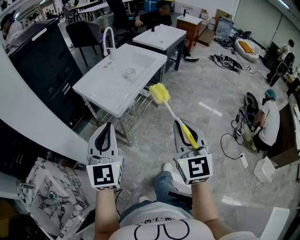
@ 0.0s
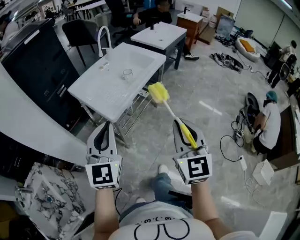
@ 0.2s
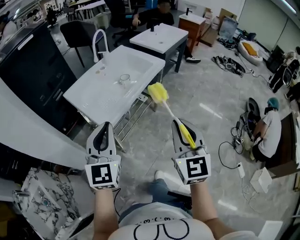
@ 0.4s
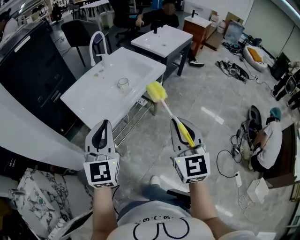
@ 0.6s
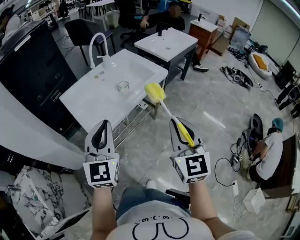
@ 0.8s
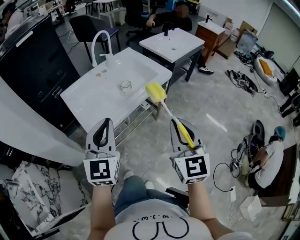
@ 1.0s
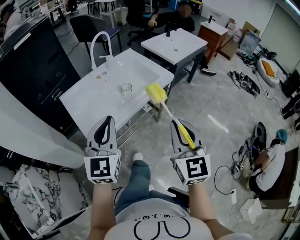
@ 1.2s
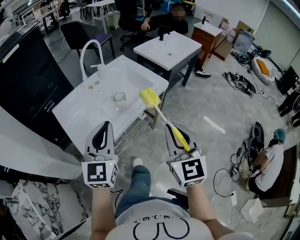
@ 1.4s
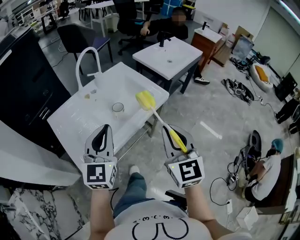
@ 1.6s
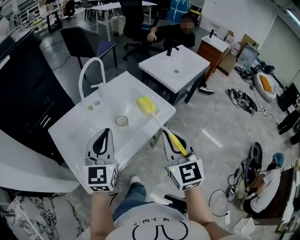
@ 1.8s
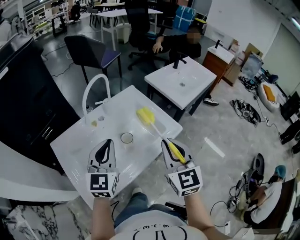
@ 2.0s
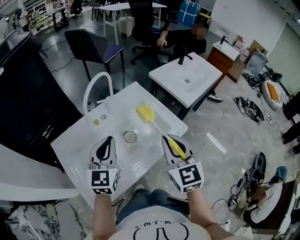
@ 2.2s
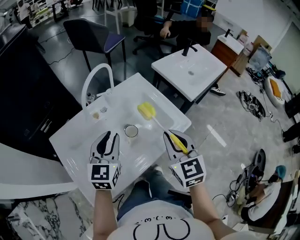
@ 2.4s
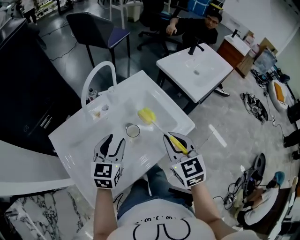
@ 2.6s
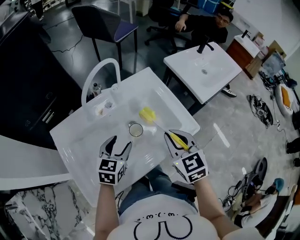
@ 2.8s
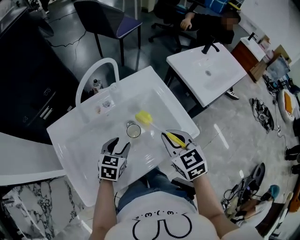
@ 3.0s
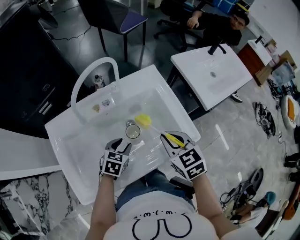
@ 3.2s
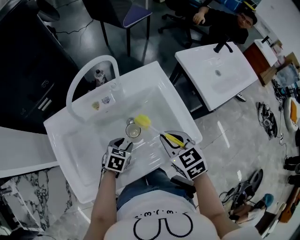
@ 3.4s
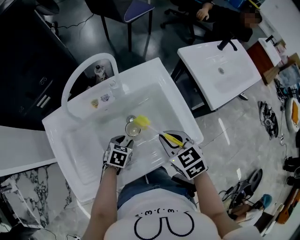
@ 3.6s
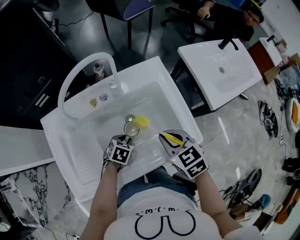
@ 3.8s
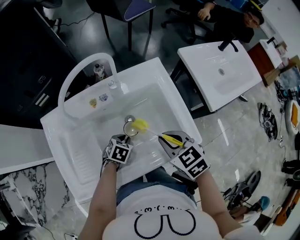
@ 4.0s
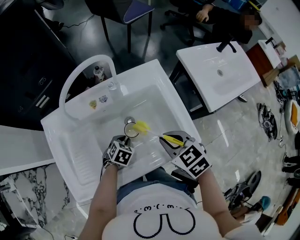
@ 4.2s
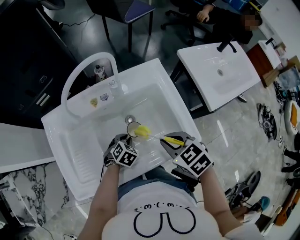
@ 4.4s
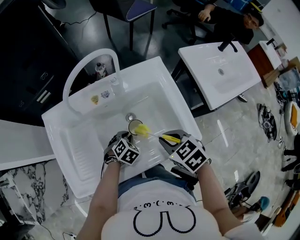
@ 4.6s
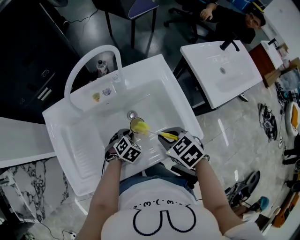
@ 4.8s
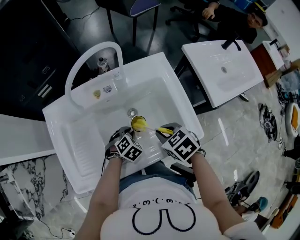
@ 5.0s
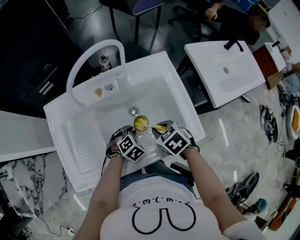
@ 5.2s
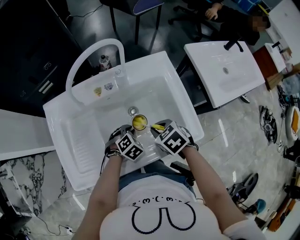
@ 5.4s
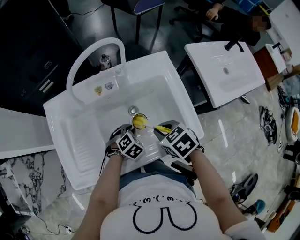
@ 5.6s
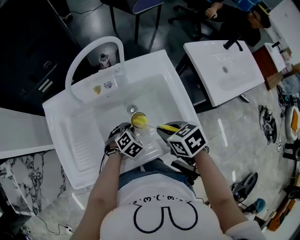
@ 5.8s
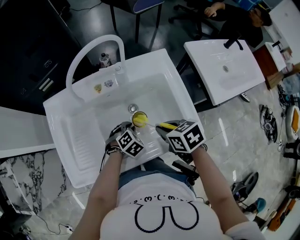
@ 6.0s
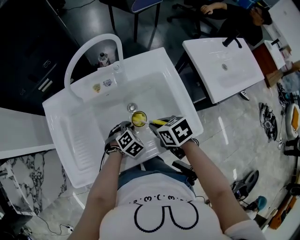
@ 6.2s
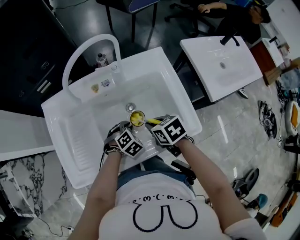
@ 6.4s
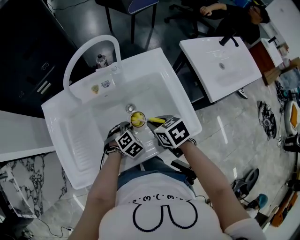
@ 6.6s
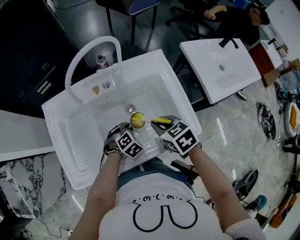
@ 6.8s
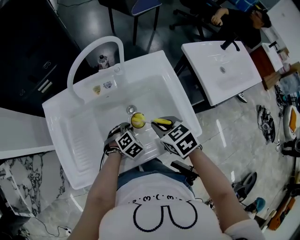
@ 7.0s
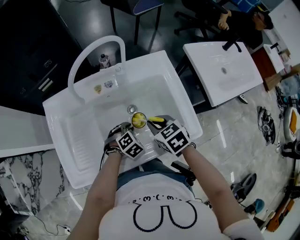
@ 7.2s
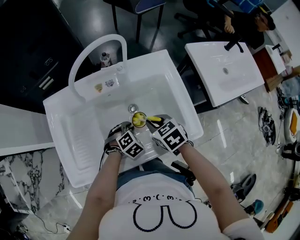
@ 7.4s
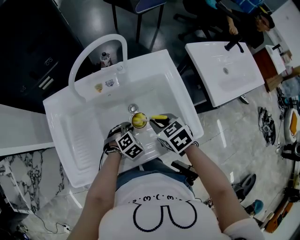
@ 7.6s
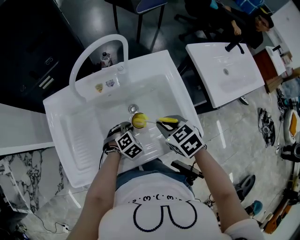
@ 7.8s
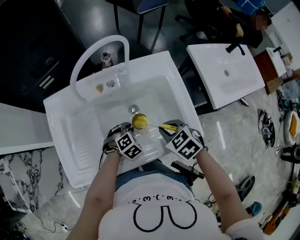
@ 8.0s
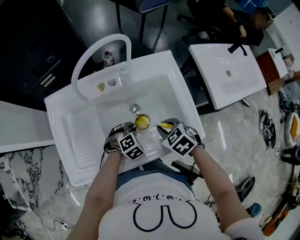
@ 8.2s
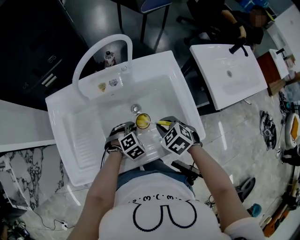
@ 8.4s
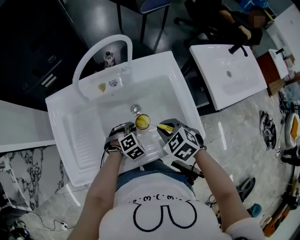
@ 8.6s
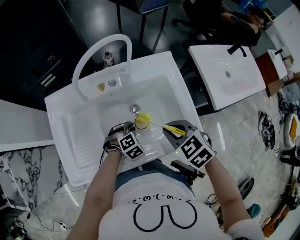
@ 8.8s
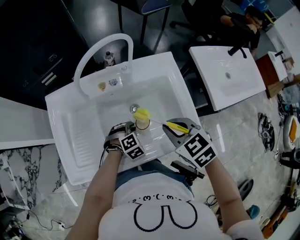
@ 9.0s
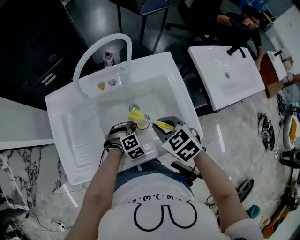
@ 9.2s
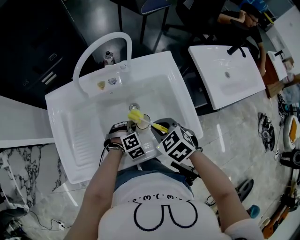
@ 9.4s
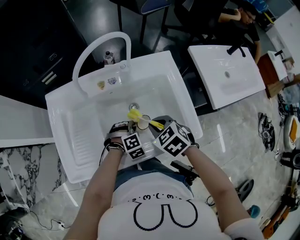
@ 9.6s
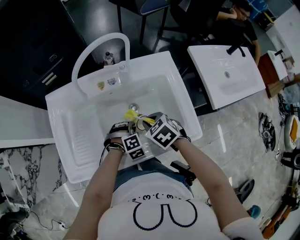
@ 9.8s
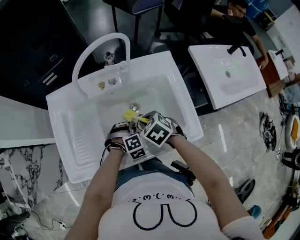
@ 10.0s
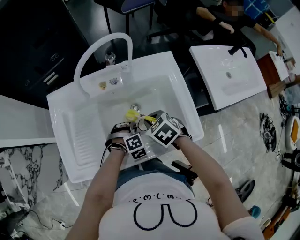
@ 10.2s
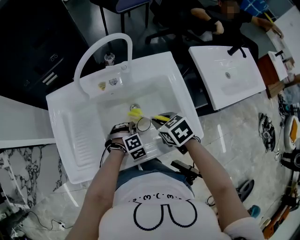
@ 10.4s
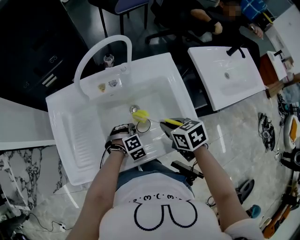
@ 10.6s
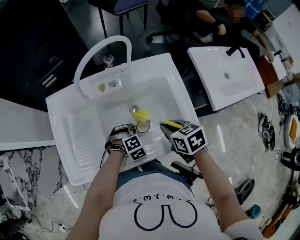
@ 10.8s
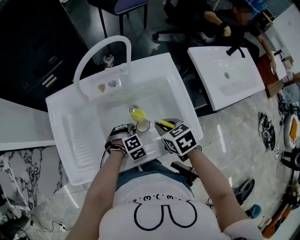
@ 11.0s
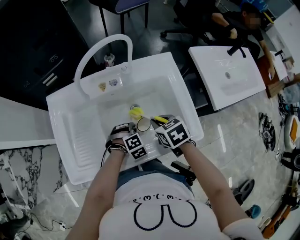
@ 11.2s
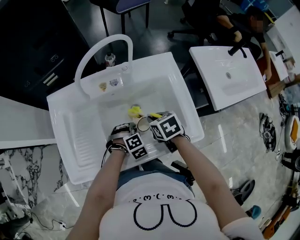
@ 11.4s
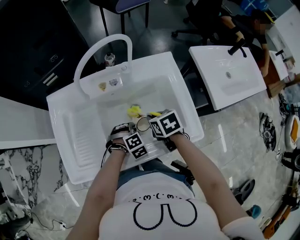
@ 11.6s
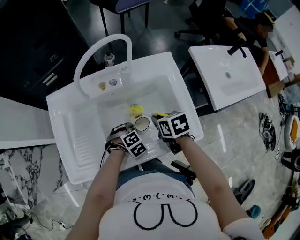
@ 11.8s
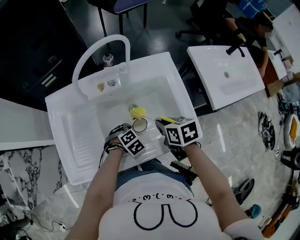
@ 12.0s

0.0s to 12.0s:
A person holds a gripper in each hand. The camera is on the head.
0.0s to 1.6s: The two grippers travel together, forward, some 40 cm.
1.6s to 3.0s: The right gripper goes about 30 cm forward and downward, and turns by some 40 degrees; the left gripper is displaced downward and forward by some 30 cm, points its fingers some 40 degrees further downward, and opens its fingers.
3.0s to 4.4s: The left gripper heads downward, covering approximately 10 cm, turns by some 30 degrees, and closes up. The right gripper is displaced downward by roughly 5 cm, and rotates approximately 30 degrees.
6.0s to 7.6s: The right gripper swings up and down, approximately 5 cm each way, with 2 reversals.
7.6s to 9.0s: The right gripper is displaced upward by some 10 cm.
9.0s to 10.4s: The right gripper goes approximately 10 cm downward.
10.4s to 12.0s: The right gripper rotates about 20 degrees.

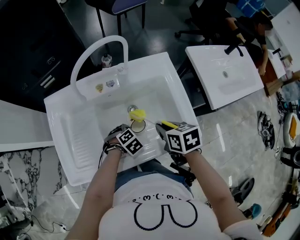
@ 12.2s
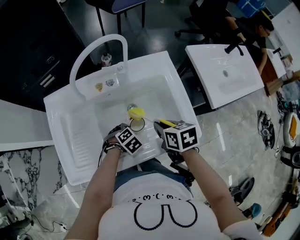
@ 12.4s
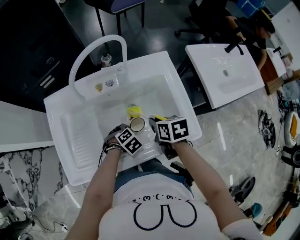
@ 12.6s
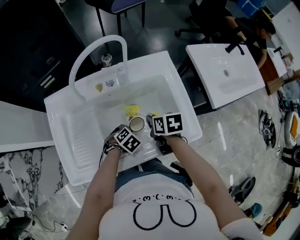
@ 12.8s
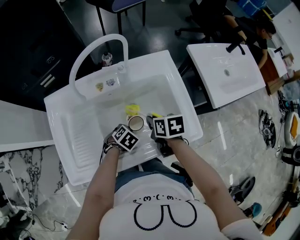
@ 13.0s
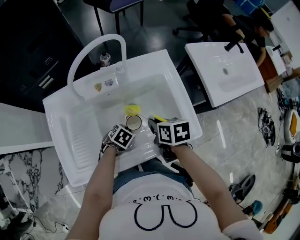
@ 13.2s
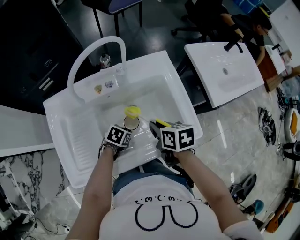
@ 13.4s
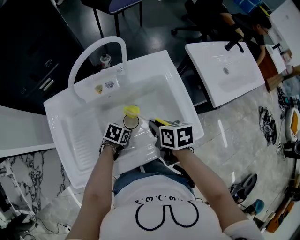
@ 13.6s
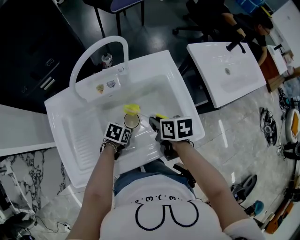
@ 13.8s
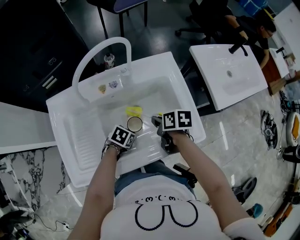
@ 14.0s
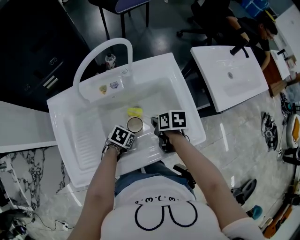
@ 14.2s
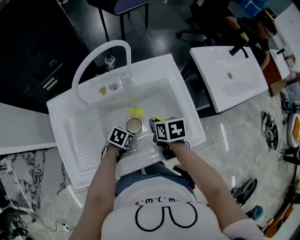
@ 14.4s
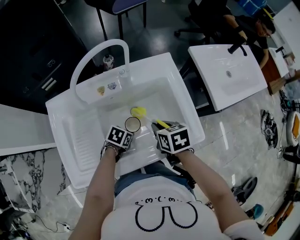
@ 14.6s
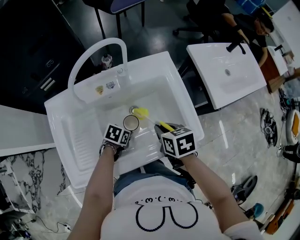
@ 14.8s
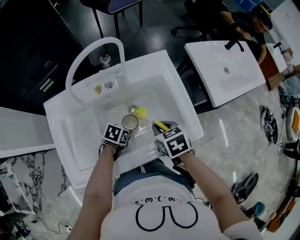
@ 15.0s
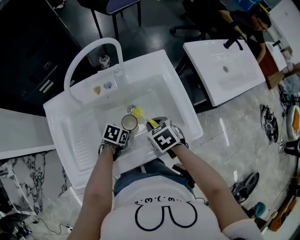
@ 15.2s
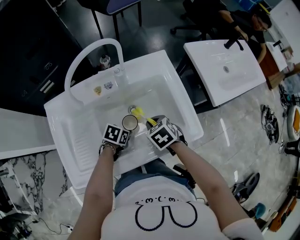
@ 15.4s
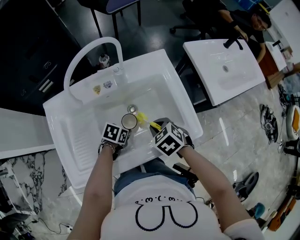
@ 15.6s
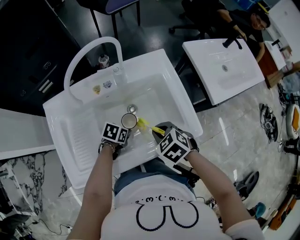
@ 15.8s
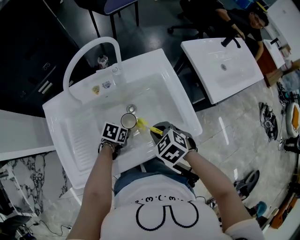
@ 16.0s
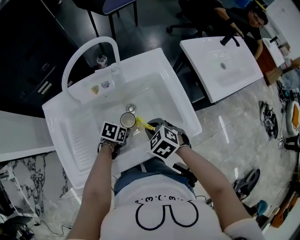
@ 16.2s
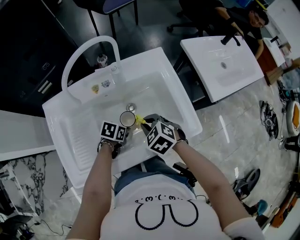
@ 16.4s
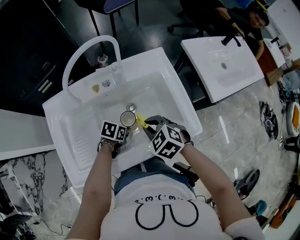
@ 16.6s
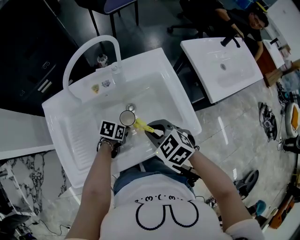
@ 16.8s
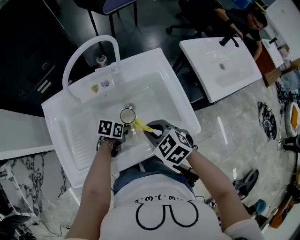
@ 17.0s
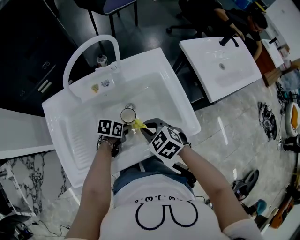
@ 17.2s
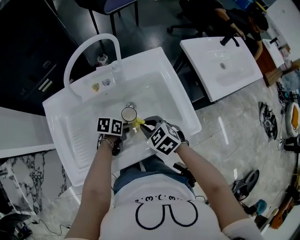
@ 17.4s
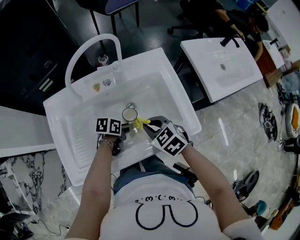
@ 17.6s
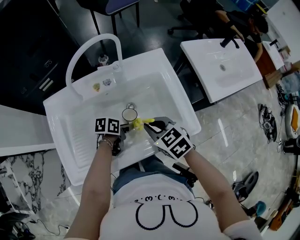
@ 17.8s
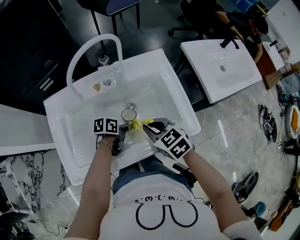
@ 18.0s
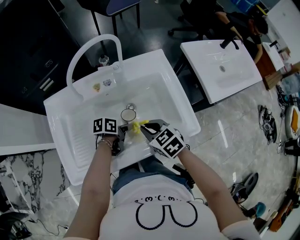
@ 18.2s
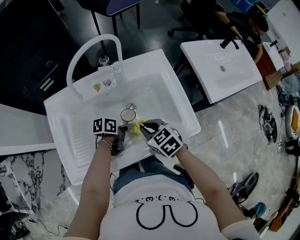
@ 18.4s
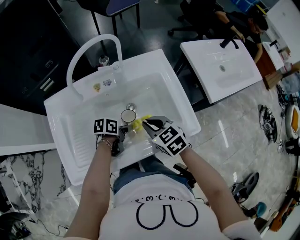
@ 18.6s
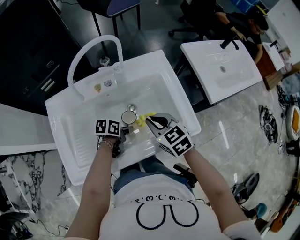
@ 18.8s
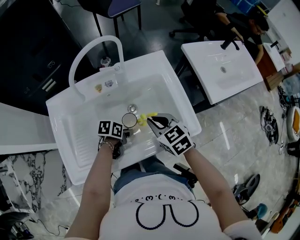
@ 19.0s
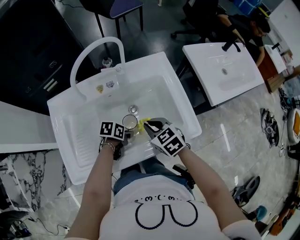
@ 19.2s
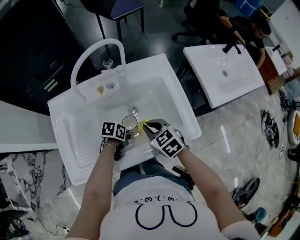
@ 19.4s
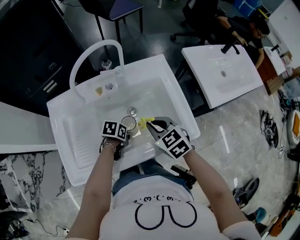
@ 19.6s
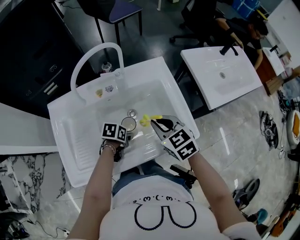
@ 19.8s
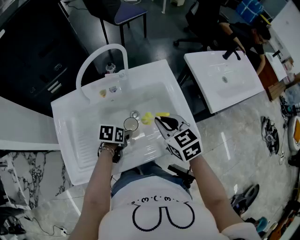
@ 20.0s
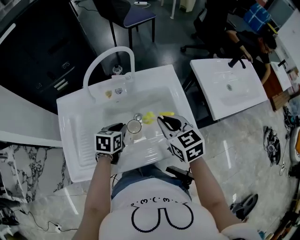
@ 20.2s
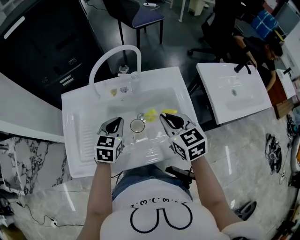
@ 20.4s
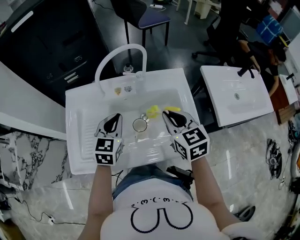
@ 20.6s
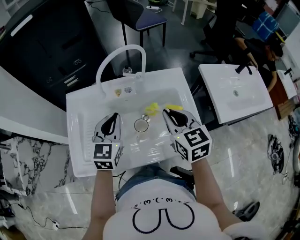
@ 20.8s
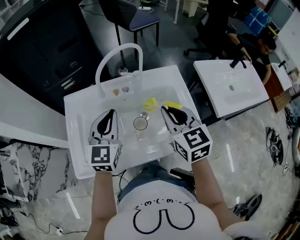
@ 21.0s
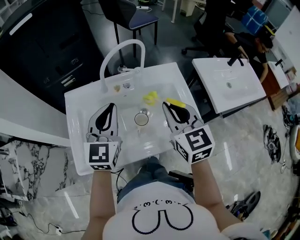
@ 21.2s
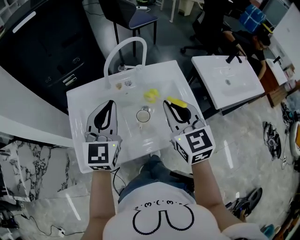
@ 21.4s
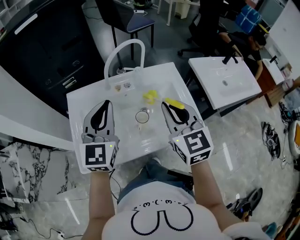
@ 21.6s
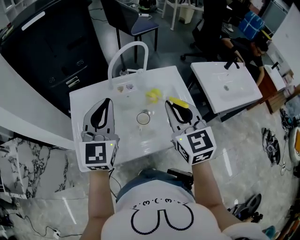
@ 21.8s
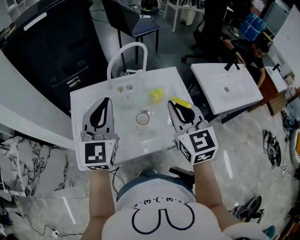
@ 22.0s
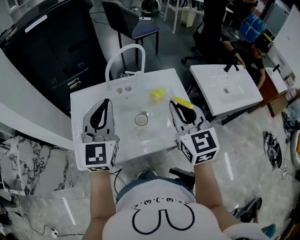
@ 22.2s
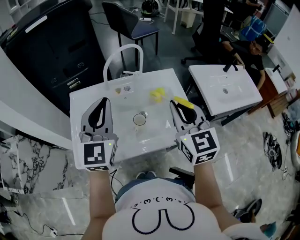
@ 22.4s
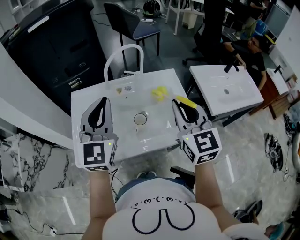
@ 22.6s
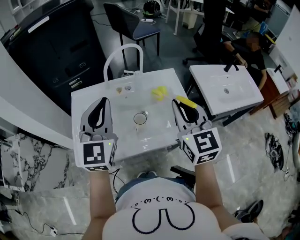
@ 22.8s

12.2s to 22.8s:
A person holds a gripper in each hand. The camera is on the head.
12.2s to 13.8s: The left gripper turns by some 50 degrees.
13.8s to 15.2s: The right gripper goes up and down, about 10 cm each way, reversing 2 times, and turns by some 40 degrees.
15.2s to 16.8s: The right gripper goes some 5 cm upward, and changes its angle by about 30 degrees.
16.8s to 18.2s: The left gripper turns by about 30 degrees.
18.2s to 19.8s: The left gripper swivels approximately 20 degrees. The right gripper moves up and down over some 10 cm, changing direction 2 times.
19.8s to 21.2s: The left gripper travels upward by about 35 cm, angles its fingers upward, by about 50 degrees, and closes its fingers. Meanwhile the right gripper heads upward, covering about 15 cm, and turns by some 20 degrees.
21.2s to 22.8s: The left gripper goes about 10 cm upward and backward; the right gripper goes some 10 cm backward and upward.

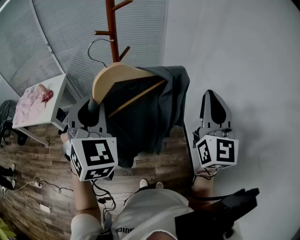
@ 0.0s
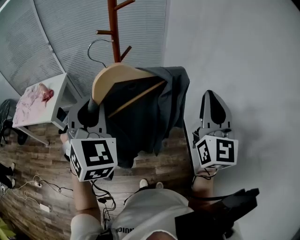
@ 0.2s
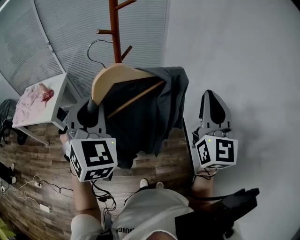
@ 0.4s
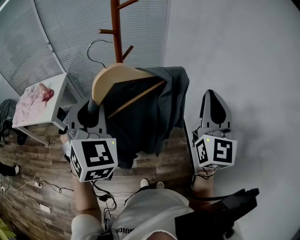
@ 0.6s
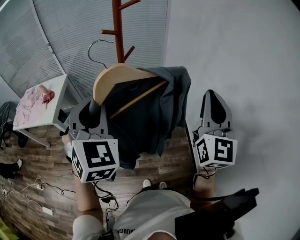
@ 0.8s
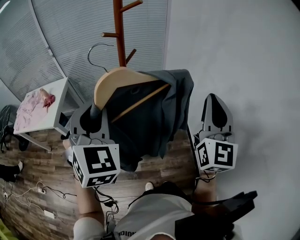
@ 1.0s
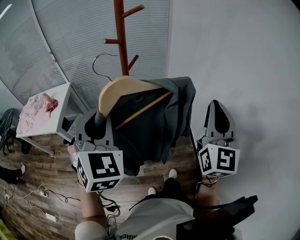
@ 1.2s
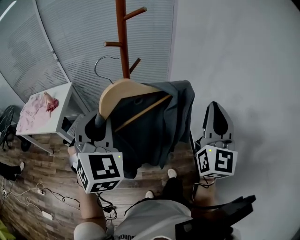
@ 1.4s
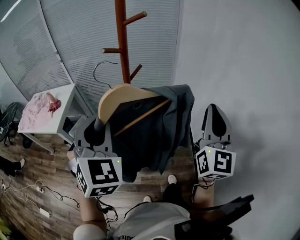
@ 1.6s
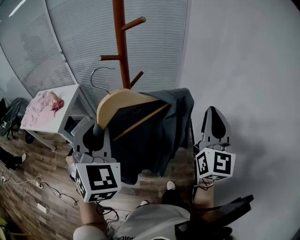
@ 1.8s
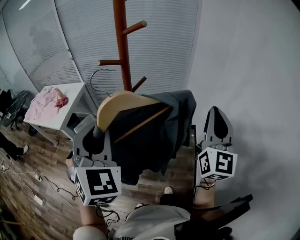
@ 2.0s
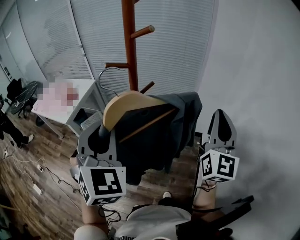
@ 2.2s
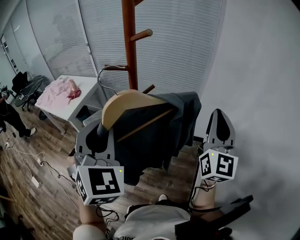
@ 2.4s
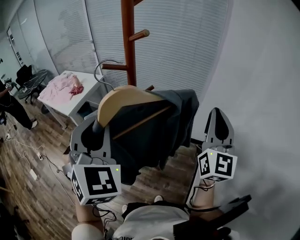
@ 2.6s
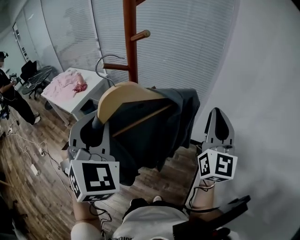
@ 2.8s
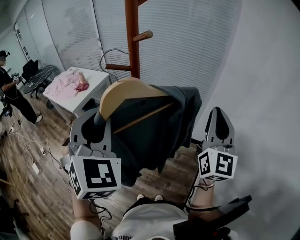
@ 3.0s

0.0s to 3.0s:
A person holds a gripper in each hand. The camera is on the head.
0.0s to 1.6s: The right gripper moves forward, about 5 cm.
1.6s to 3.0s: The left gripper is displaced upward by some 5 cm, and rotates approximately 20 degrees, while the right gripper goes approximately 15 cm forward, and rotates roughly 20 degrees.
